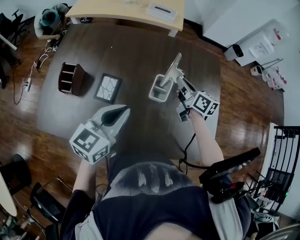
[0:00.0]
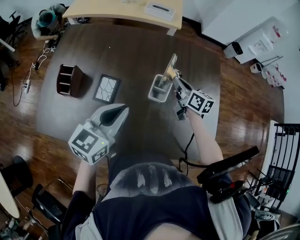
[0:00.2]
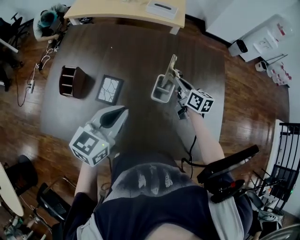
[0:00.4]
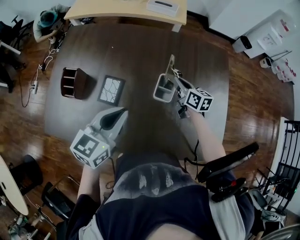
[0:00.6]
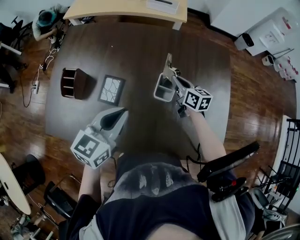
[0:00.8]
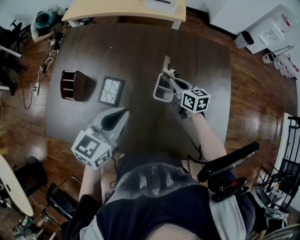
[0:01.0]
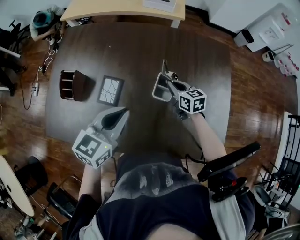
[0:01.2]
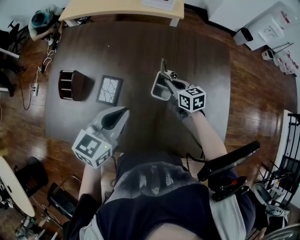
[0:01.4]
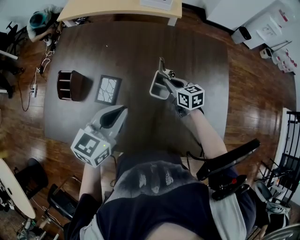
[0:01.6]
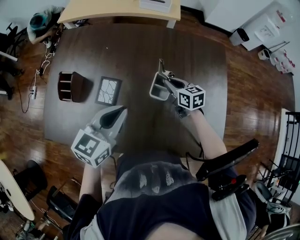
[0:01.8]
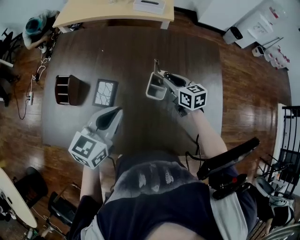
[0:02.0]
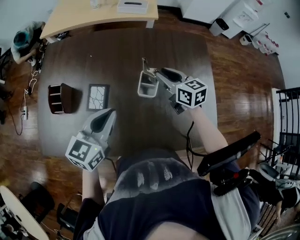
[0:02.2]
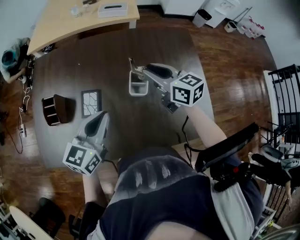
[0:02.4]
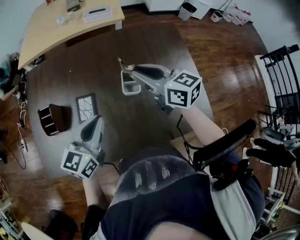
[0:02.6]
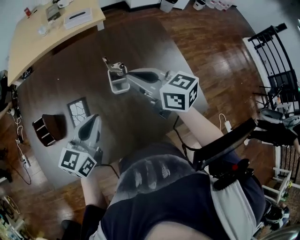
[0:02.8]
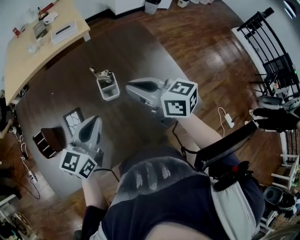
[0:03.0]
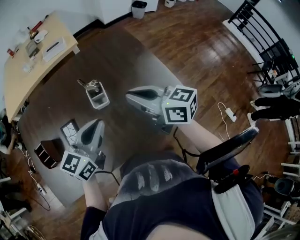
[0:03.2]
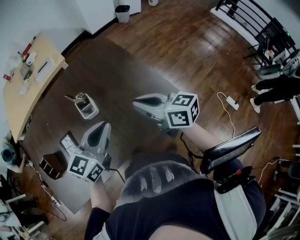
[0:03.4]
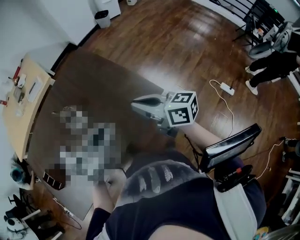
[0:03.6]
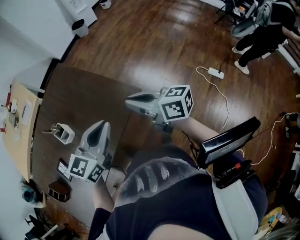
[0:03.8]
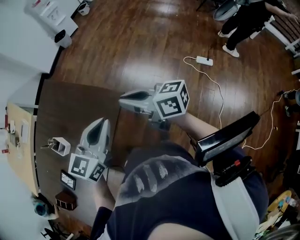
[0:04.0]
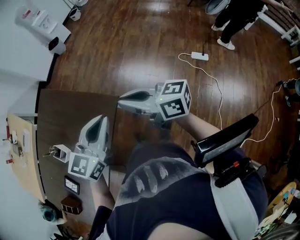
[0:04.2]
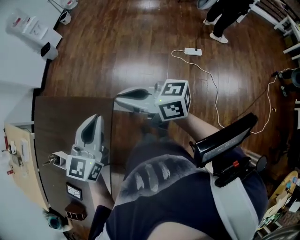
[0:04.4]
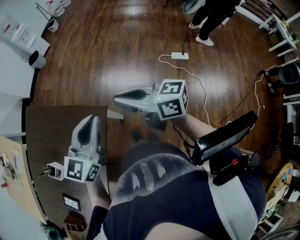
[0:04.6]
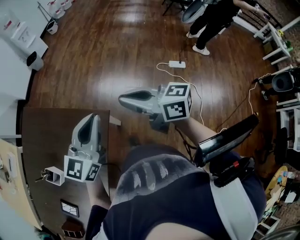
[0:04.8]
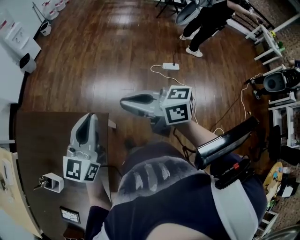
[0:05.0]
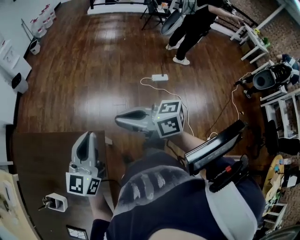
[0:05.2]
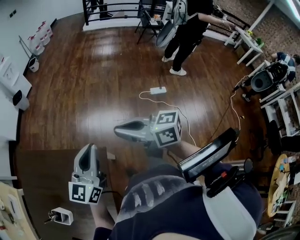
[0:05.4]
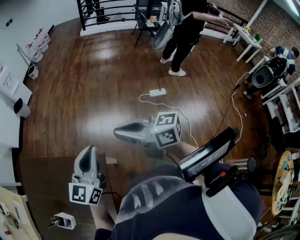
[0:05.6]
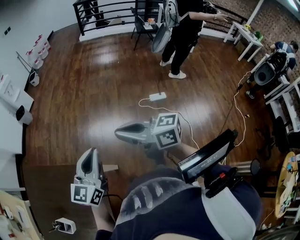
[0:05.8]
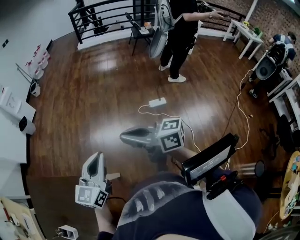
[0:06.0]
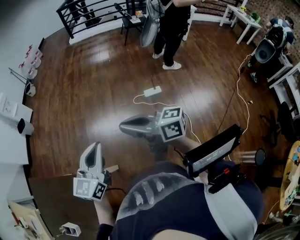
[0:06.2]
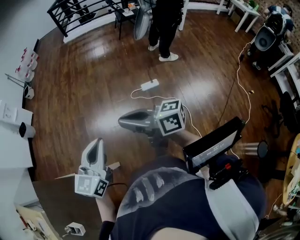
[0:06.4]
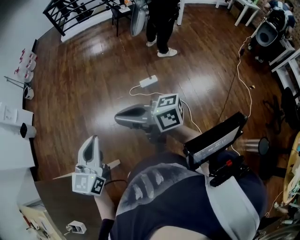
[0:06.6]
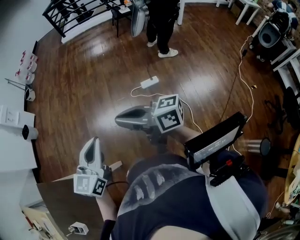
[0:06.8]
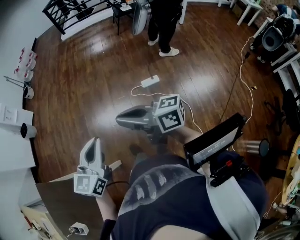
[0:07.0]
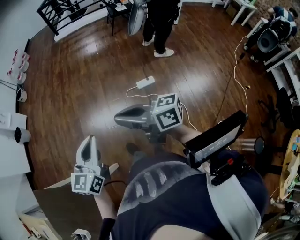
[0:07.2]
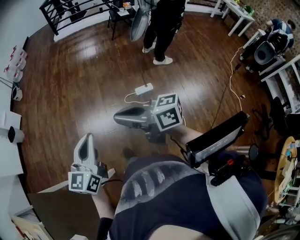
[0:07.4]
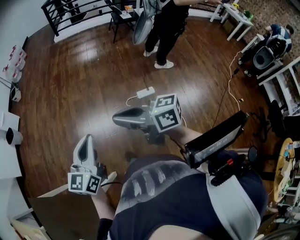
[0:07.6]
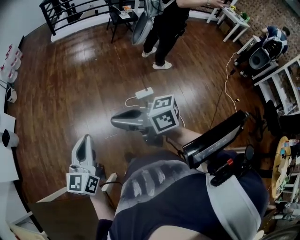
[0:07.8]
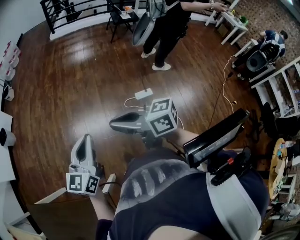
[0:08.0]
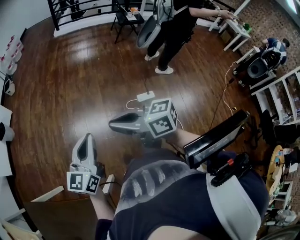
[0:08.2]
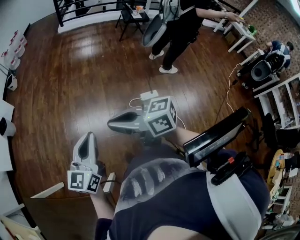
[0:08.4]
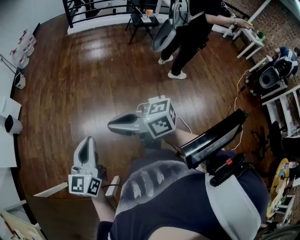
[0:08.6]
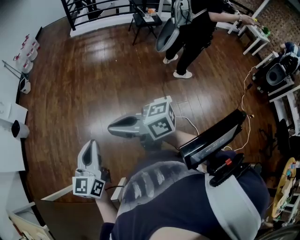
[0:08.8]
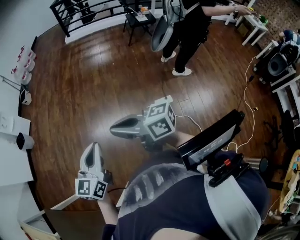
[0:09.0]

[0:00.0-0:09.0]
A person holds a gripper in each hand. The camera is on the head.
0:00.0 to 0:01.6: The right gripper shifts roughly 10 cm downward, and changes its angle by approximately 30 degrees.
0:01.6 to 0:03.0: The right gripper moves upward and backward, about 25 cm, turns by about 30 degrees, and opens, then closes once more. The left gripper turns by some 20 degrees.
0:03.0 to 0:04.4: The pair of grippers is taken about 50 cm. The left gripper turns by some 50 degrees; the right gripper turns by about 40 degrees.
0:04.4 to 0:06.0: The right gripper shifts about 15 cm to the right, while the left gripper shifts about 15 cm to the right and forward.
0:06.0 to 0:07.6: The right gripper heads forward and to the right, covering approximately 20 cm; the left gripper goes some 20 cm forward.
0:07.6 to 0:09.0: The two grippers go approximately 15 cm forward.

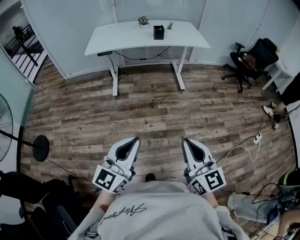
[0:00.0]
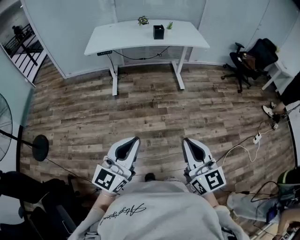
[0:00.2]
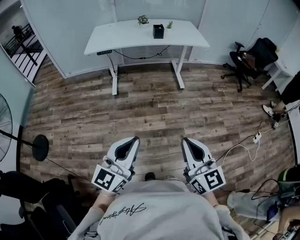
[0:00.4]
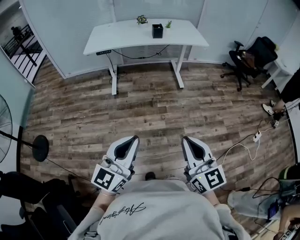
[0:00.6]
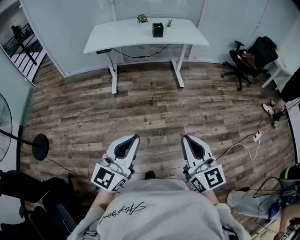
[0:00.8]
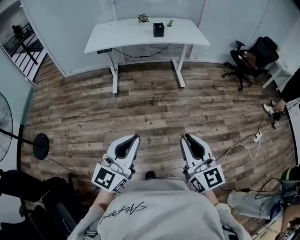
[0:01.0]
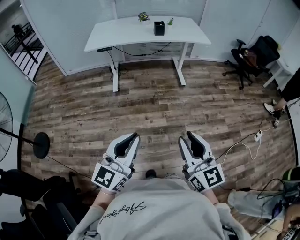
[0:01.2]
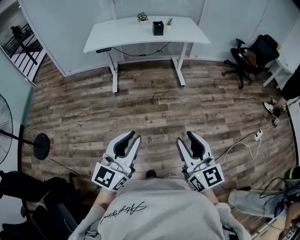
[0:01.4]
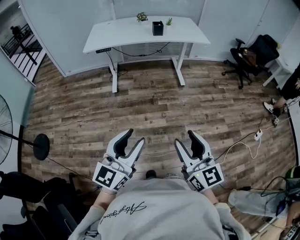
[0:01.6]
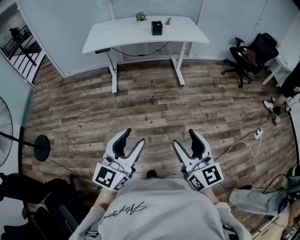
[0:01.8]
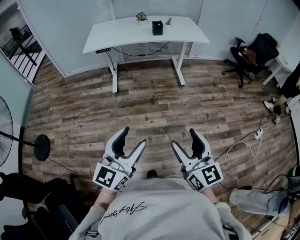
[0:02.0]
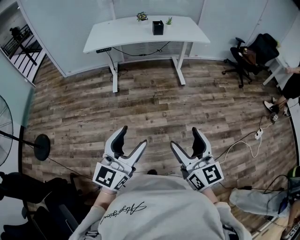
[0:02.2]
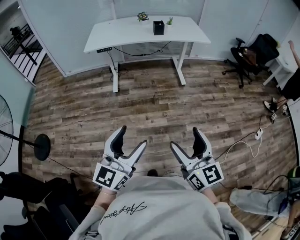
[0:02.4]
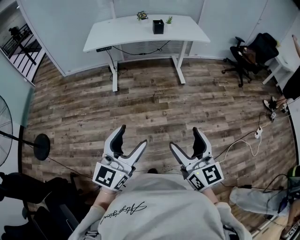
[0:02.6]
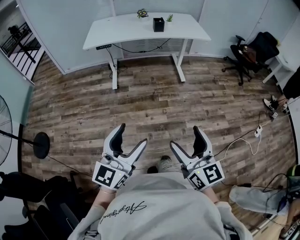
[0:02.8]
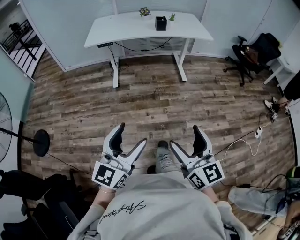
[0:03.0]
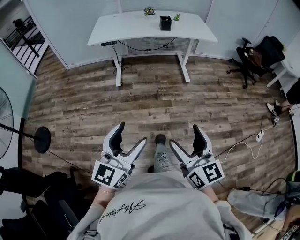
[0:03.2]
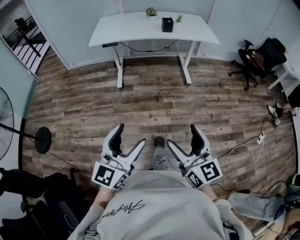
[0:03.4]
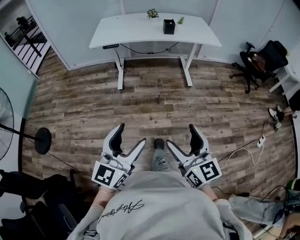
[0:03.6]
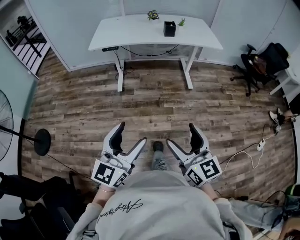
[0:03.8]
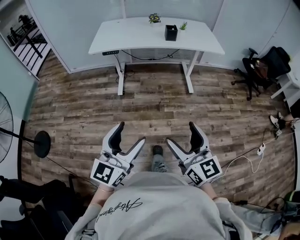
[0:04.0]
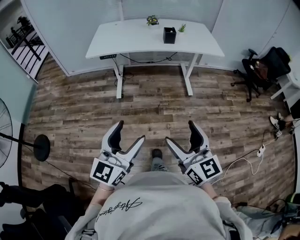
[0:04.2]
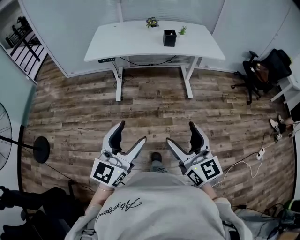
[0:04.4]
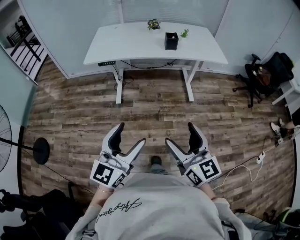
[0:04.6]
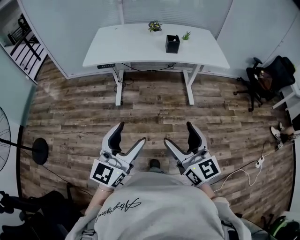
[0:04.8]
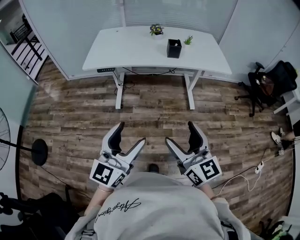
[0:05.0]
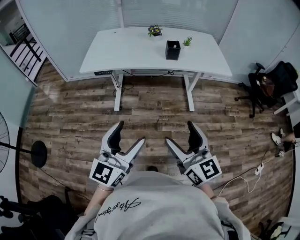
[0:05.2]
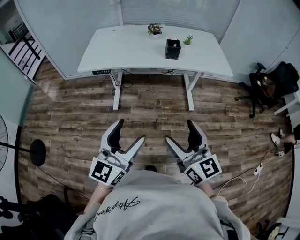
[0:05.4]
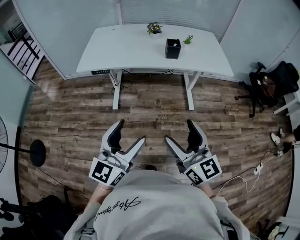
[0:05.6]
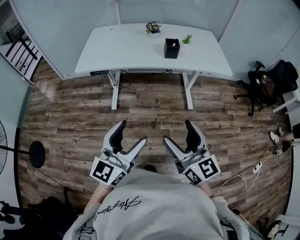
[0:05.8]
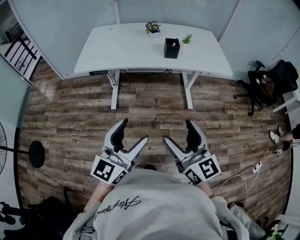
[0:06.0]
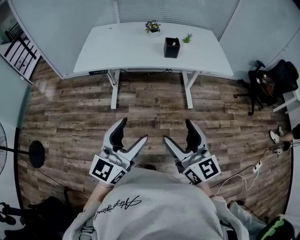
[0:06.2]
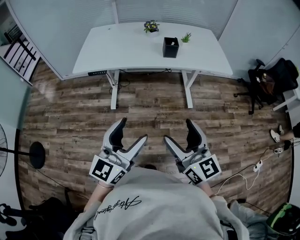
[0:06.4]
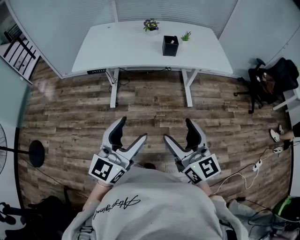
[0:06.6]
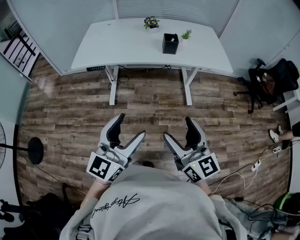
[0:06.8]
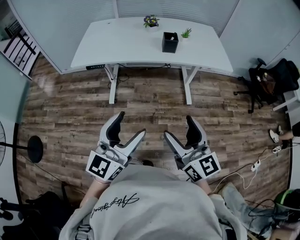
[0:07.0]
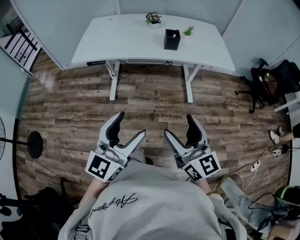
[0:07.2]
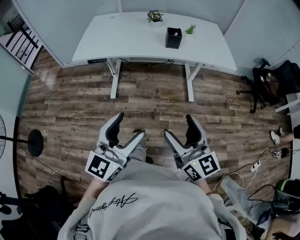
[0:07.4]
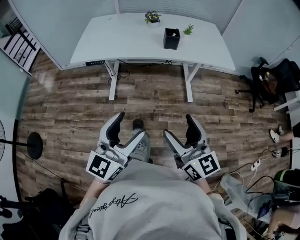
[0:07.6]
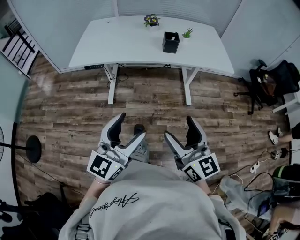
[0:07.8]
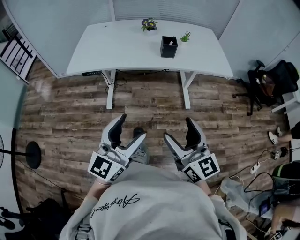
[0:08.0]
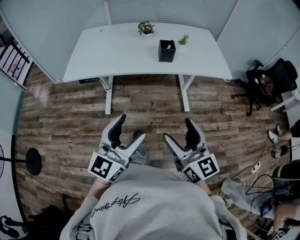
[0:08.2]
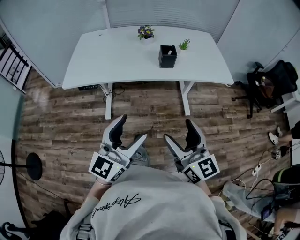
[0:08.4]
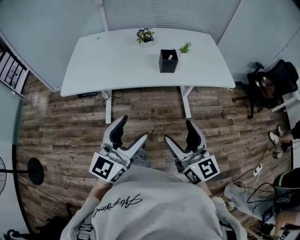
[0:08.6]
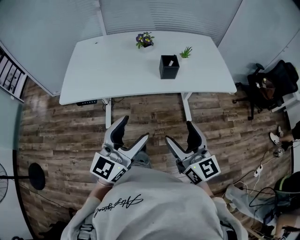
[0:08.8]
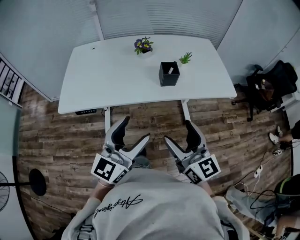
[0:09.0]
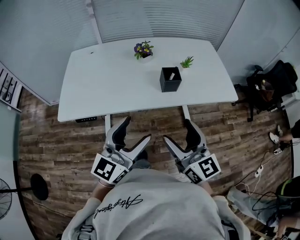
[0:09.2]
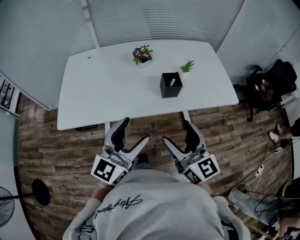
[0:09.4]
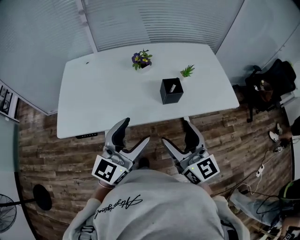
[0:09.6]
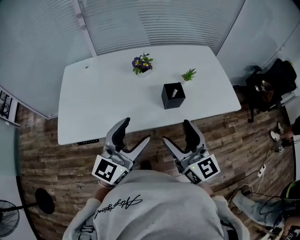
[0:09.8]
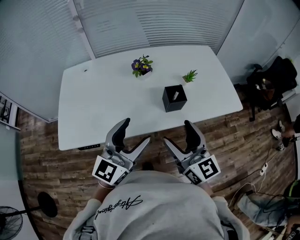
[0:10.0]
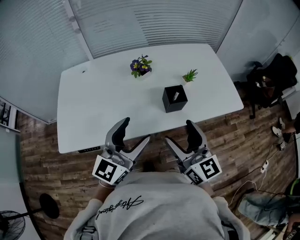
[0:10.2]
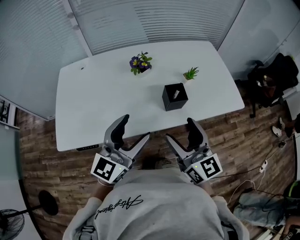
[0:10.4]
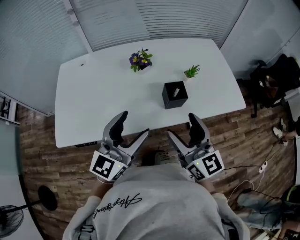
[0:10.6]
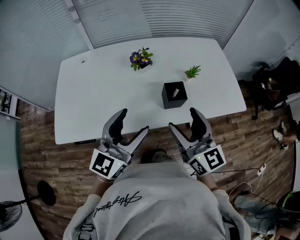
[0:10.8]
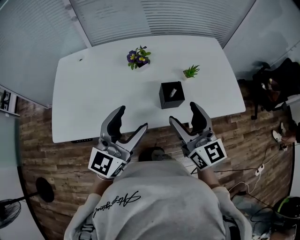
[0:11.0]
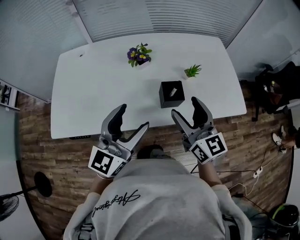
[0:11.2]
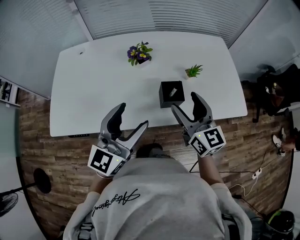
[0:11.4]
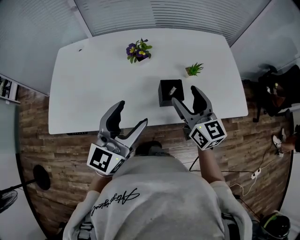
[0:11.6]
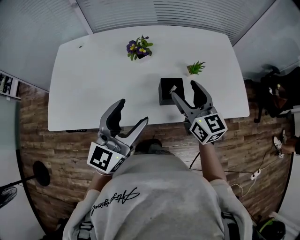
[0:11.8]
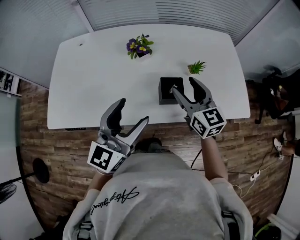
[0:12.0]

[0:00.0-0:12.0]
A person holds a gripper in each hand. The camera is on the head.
0:00.0 to 0:01.6: The right gripper opens its fingers. Meanwhile the left gripper opens its fingers.
0:01.6 to 0:03.0: The right gripper opens. Meanwhile the left gripper opens its fingers.
0:03.0 to 0:04.4: The two grippers go some 20 cm forward.
0:04.4 to 0:06.0: Both grippers move forward, approximately 20 cm.
0:06.0 to 0:07.6: There are only small adjustments of the grippers.
0:07.6 to 0:09.0: The two grippers go approximately 25 cm forward.
0:09.0 to 0:10.4: Both grippers move forward, roughly 15 cm.
0:10.4 to 0:12.0: The left gripper is displaced forward by approximately 5 cm. The right gripper goes roughly 20 cm forward.

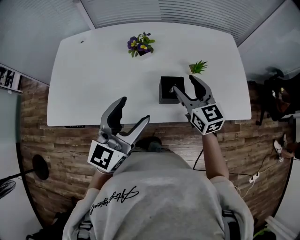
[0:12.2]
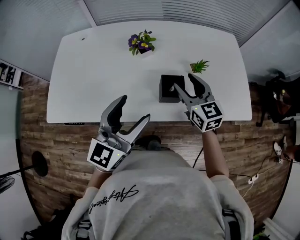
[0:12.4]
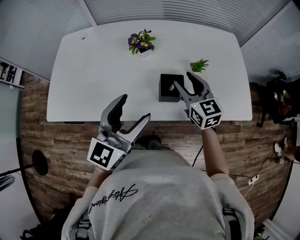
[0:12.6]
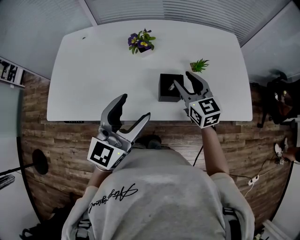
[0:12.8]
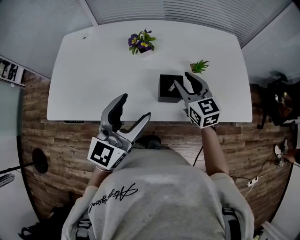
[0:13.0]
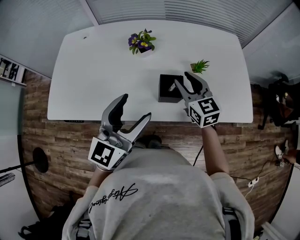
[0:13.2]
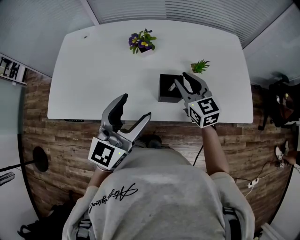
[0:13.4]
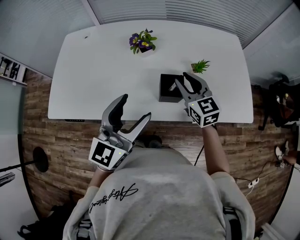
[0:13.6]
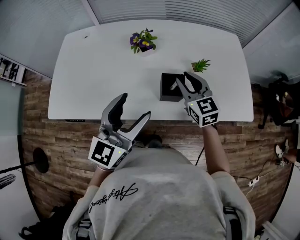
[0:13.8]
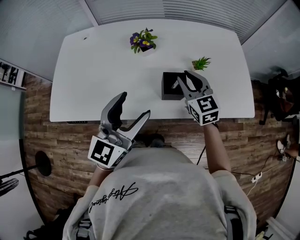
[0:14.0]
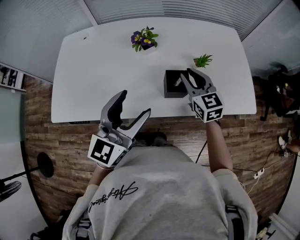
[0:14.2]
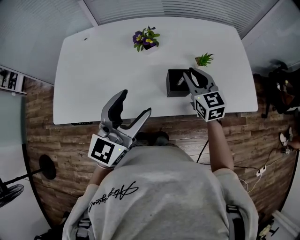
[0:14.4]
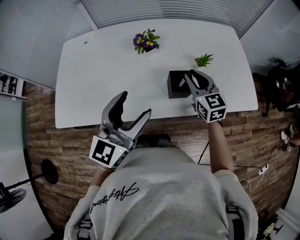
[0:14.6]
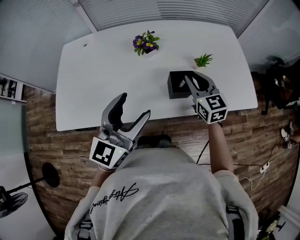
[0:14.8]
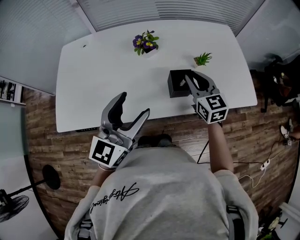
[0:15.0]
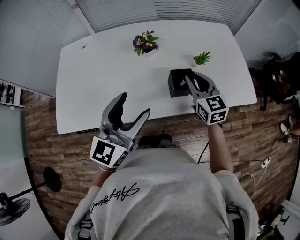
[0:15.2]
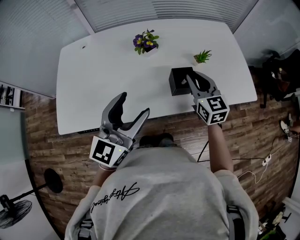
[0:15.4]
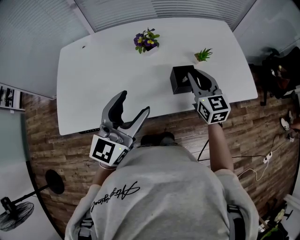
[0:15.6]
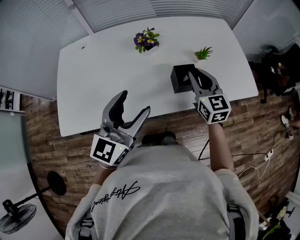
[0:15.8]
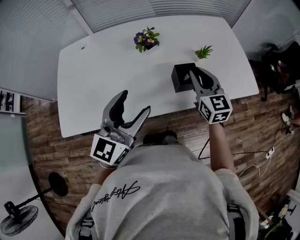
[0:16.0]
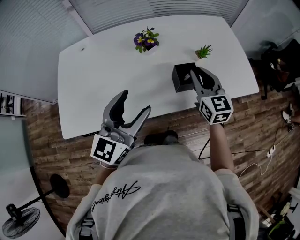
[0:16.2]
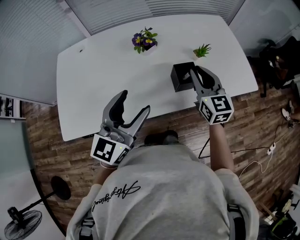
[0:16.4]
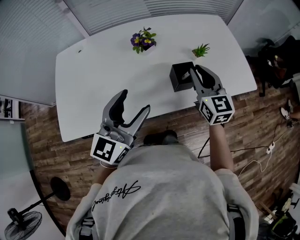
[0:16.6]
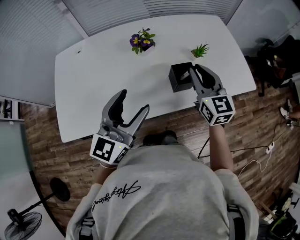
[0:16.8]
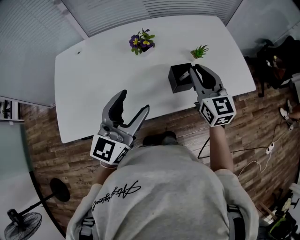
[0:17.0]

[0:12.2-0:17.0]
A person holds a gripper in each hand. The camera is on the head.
0:12.2 to 0:13.8: The right gripper closes.
0:13.8 to 0:15.4: The left gripper travels to the left by some 5 cm.
0:15.4 to 0:17.0: The right gripper is displaced upward by approximately 5 cm.
